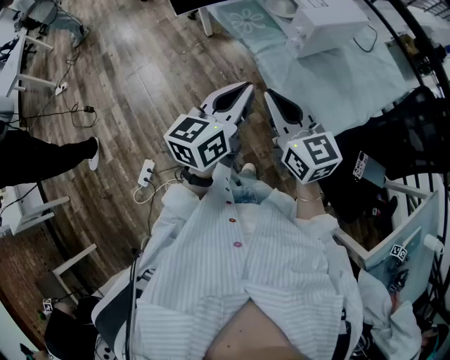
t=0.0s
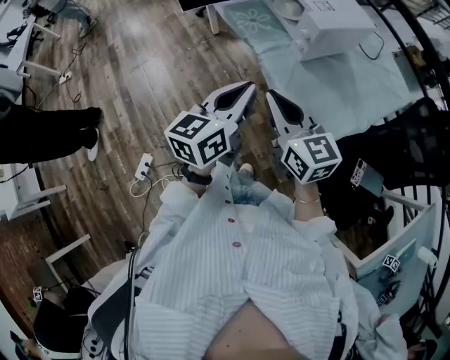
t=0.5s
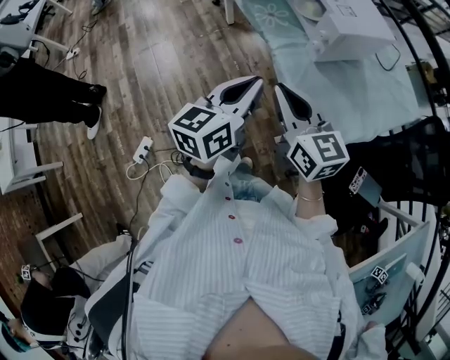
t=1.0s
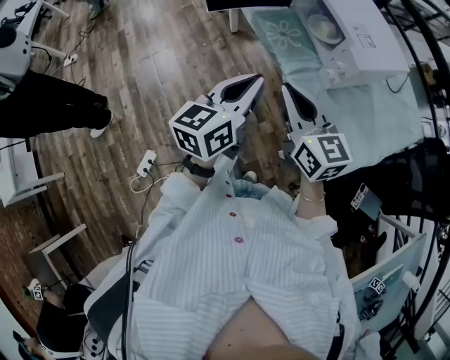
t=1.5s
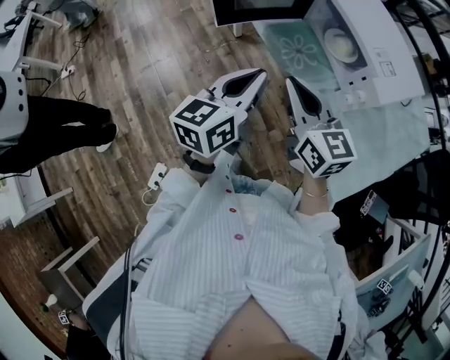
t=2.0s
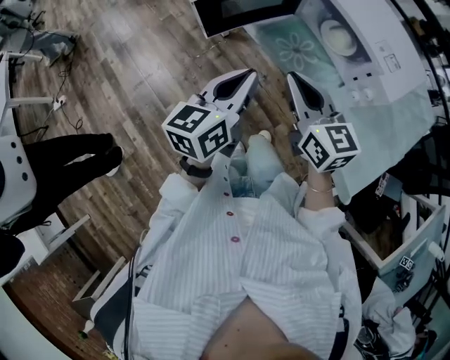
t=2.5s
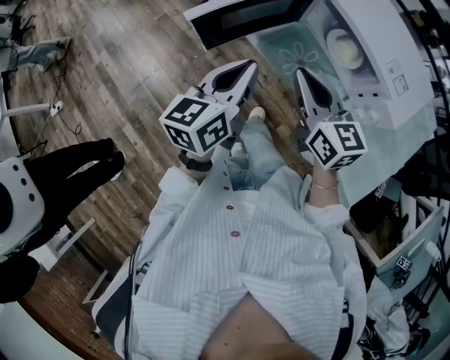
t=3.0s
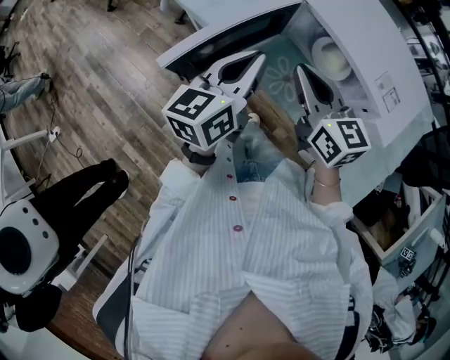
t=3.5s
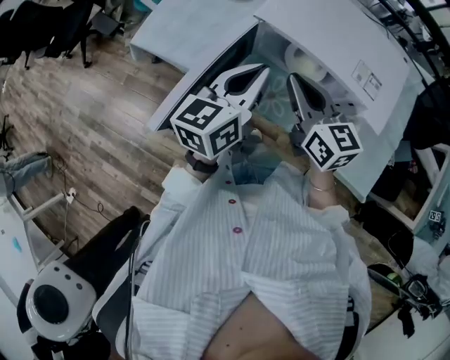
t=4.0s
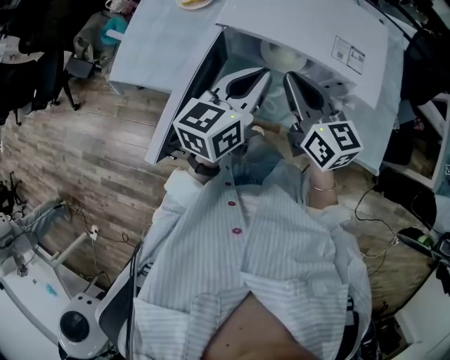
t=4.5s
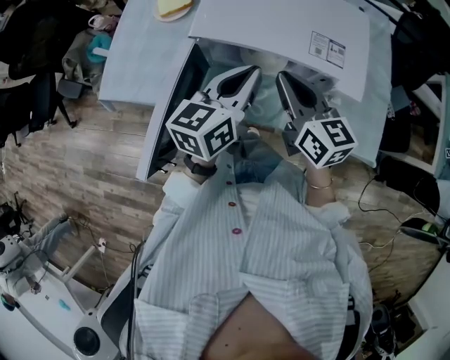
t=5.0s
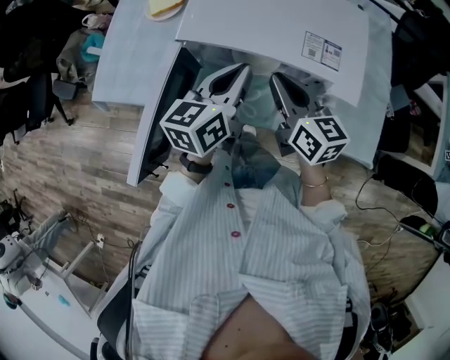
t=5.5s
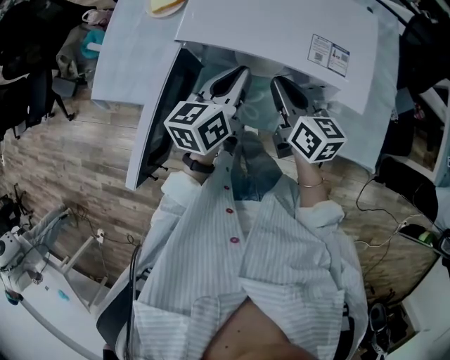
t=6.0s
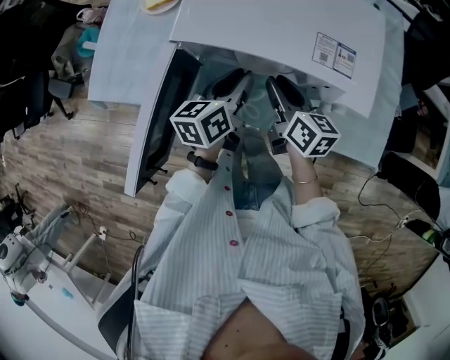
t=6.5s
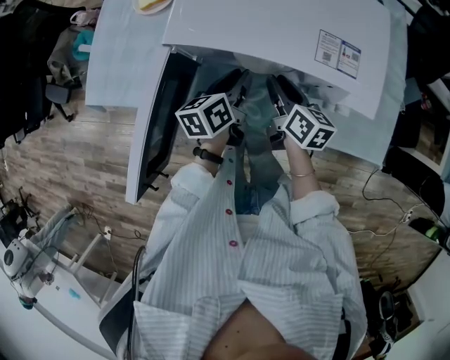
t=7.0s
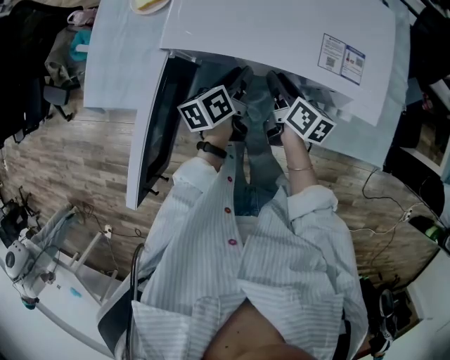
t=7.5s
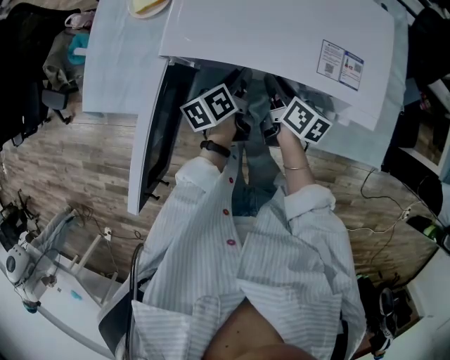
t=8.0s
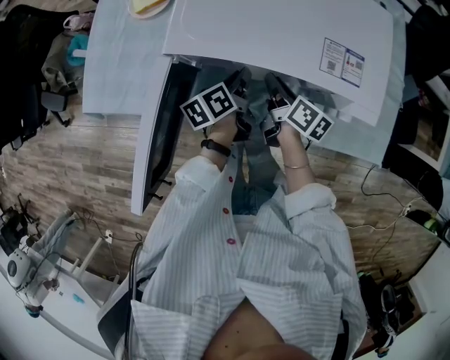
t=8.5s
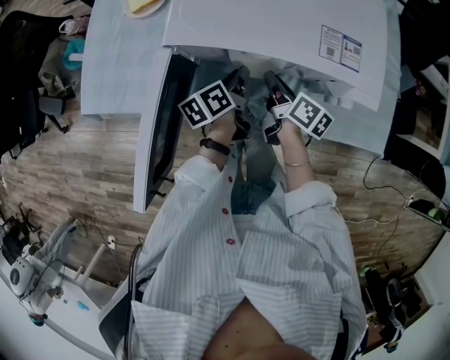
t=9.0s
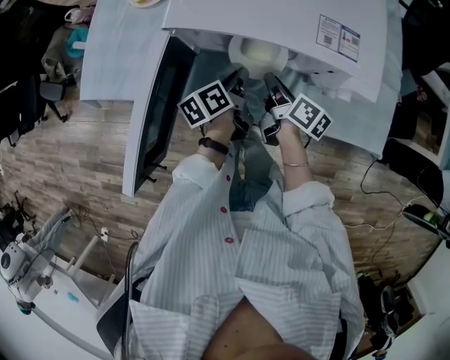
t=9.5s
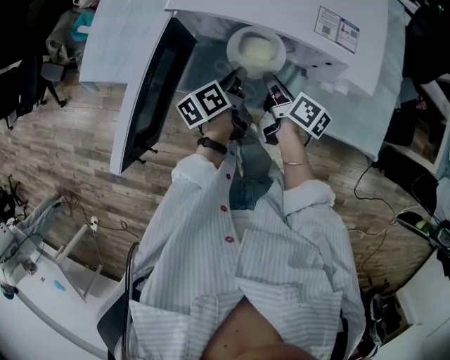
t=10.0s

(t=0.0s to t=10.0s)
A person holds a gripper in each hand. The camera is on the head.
t=0.0s - t=2.0s: Both grippers move forward and to the left, about 25 cm.
t=2.0s - t=4.0s: The right gripper moves approximately 25 cm, and turns by roughly 30 degrees, while the left gripper ends up about 30 cm from where it was, and swivels about 30 degrees.
t=4.0s - t=6.0s: The left gripper moves downward, to the right and forward, approximately 15 cm. Meanwhile the right gripper moves to the right, downward and forward, approximately 15 cm, and changes its angle by roughly 30 degrees.
t=6.0s - t=8.0s: Both grippers travel together downward, about 15 cm. The left gripper rotates roughly 30 degrees, and opens up, while the right gripper changes its angle by approximately 30 degrees.
t=8.0s - t=10.0s: The grippers both shift backward by approximately 10 cm.

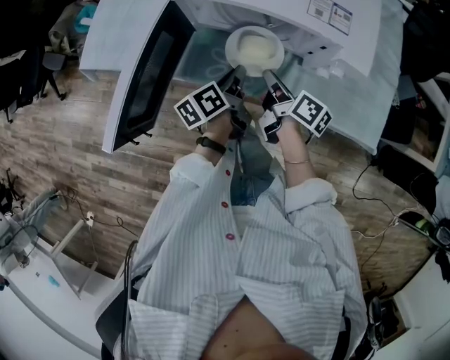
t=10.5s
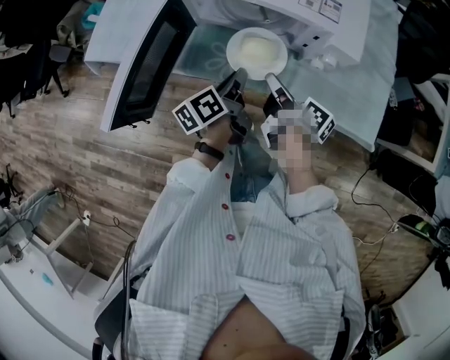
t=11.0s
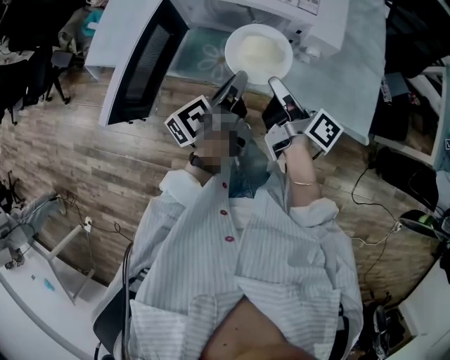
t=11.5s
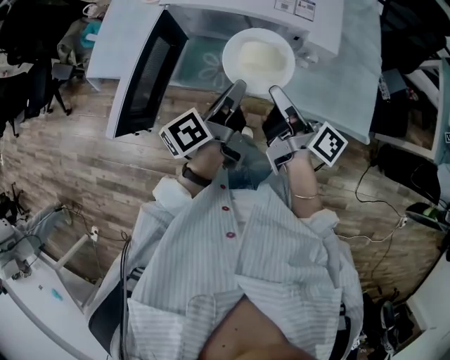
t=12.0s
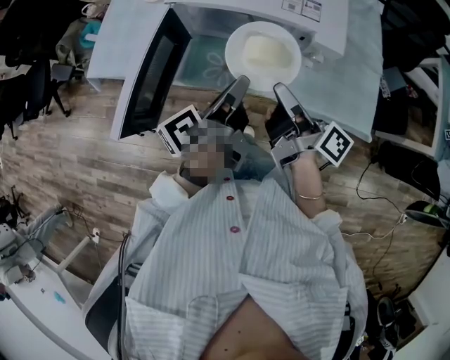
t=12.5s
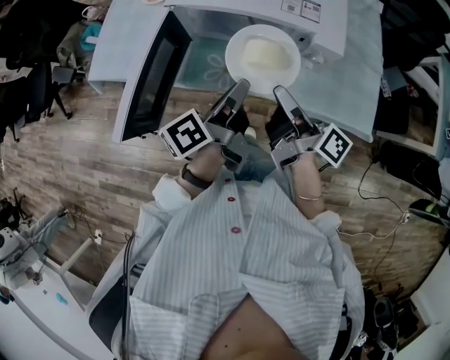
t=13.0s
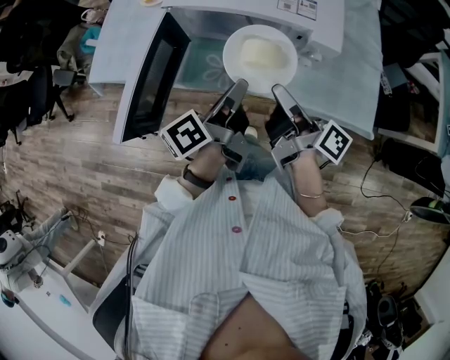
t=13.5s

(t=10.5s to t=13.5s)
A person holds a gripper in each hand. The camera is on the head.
t=10.5s - t=12.0s: The grippers both shift upward and backward by some 15 cm. The right gripper changes its angle by approximately 20 degrees.
t=12.0s - t=13.5s: The grippers stay close to where they were, moving slightly.

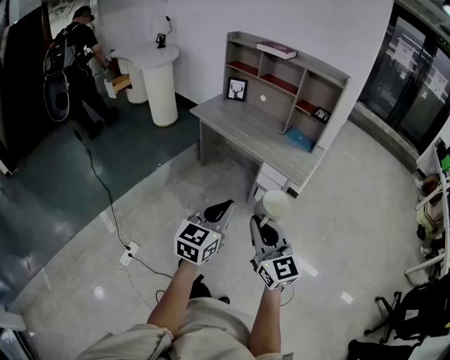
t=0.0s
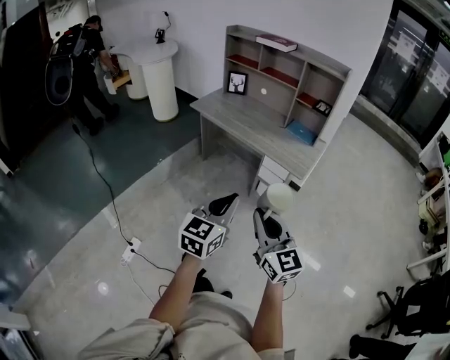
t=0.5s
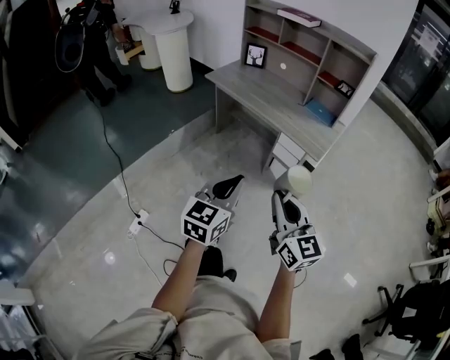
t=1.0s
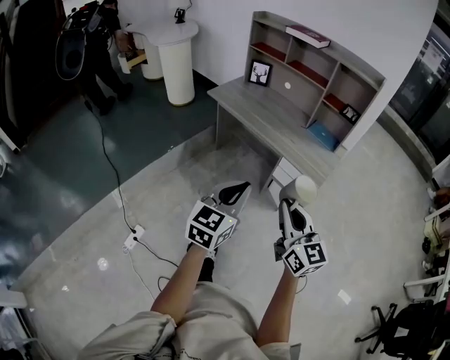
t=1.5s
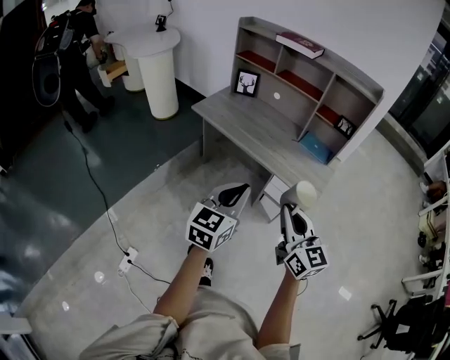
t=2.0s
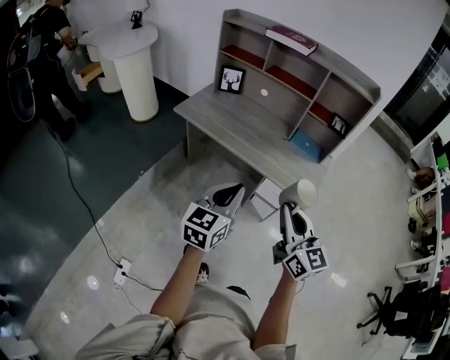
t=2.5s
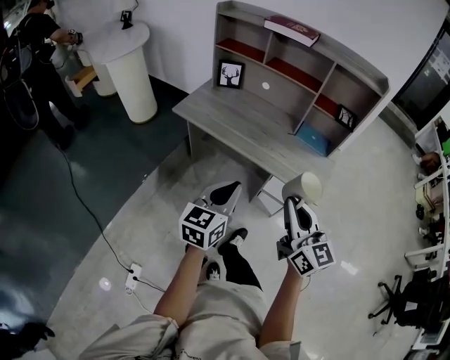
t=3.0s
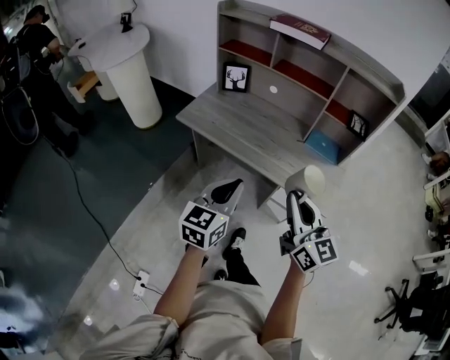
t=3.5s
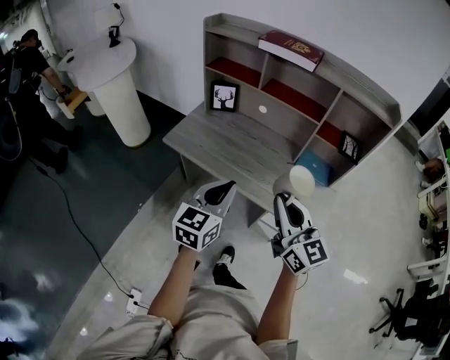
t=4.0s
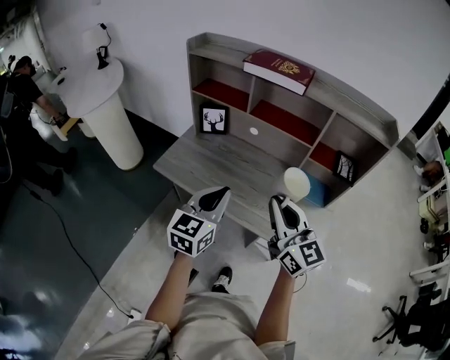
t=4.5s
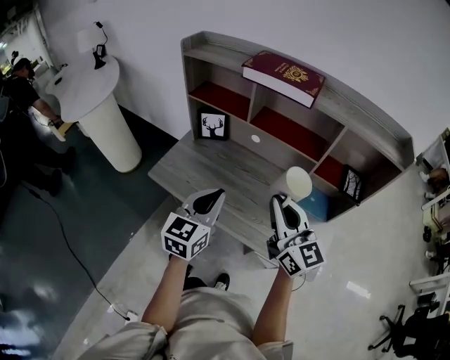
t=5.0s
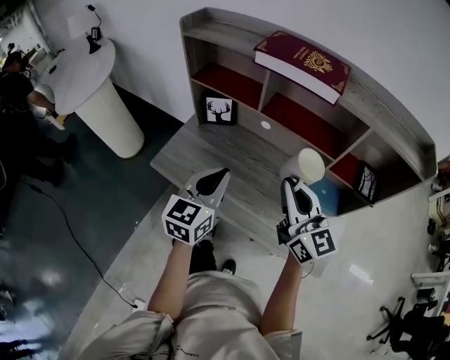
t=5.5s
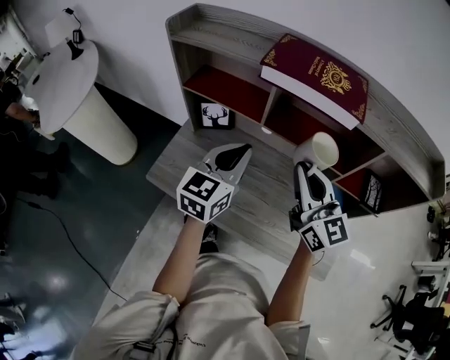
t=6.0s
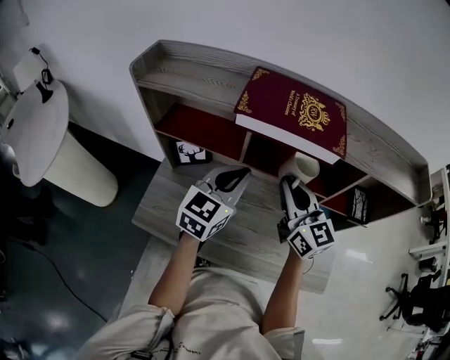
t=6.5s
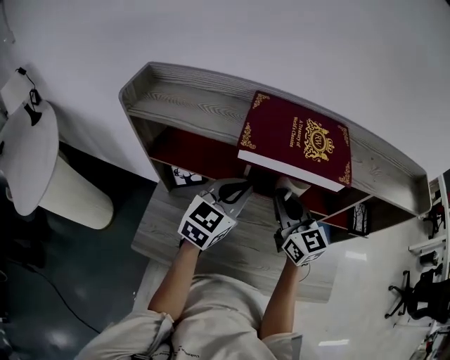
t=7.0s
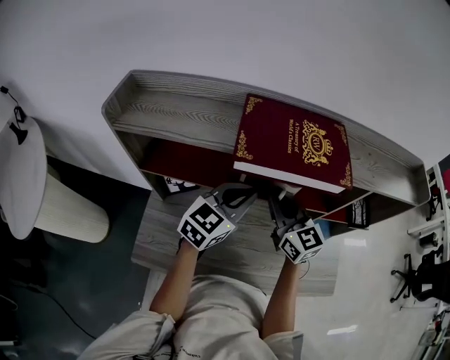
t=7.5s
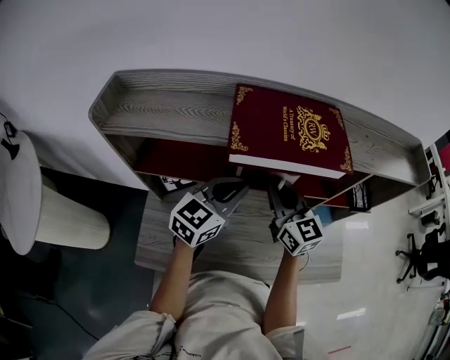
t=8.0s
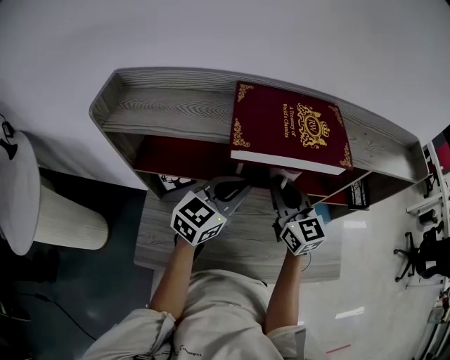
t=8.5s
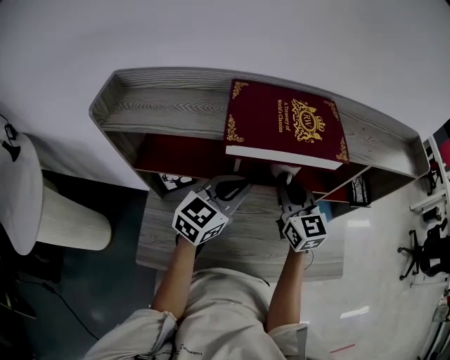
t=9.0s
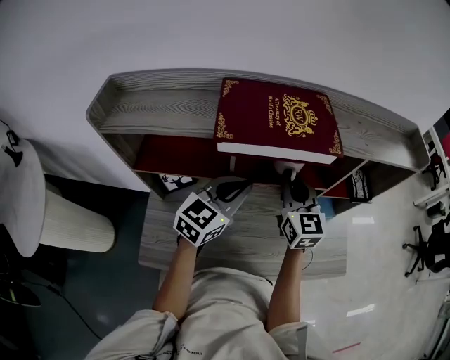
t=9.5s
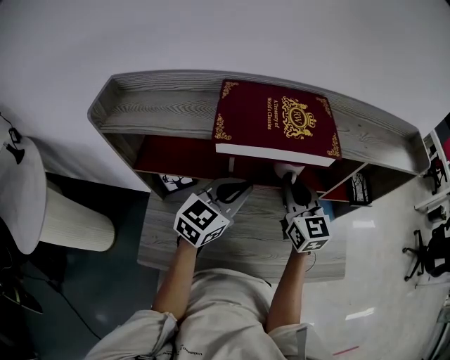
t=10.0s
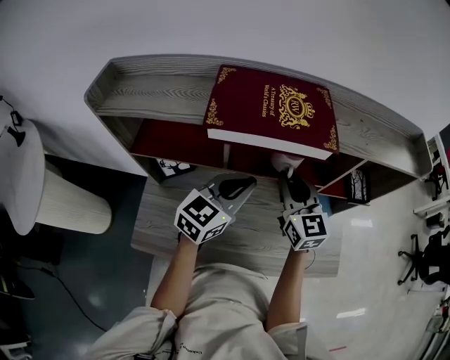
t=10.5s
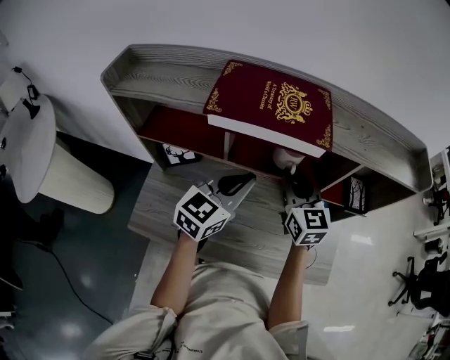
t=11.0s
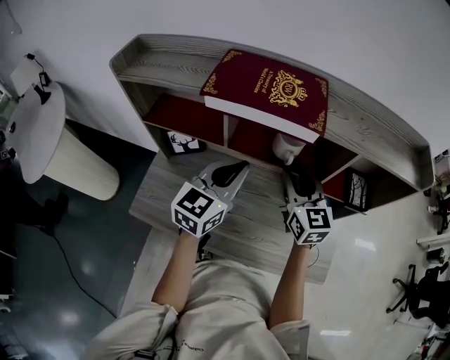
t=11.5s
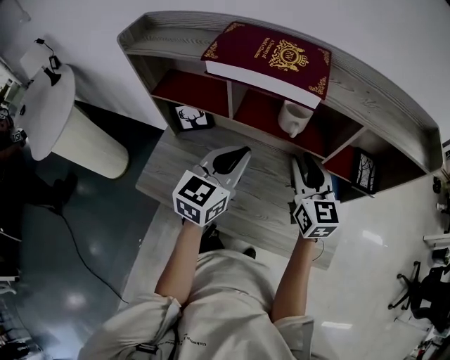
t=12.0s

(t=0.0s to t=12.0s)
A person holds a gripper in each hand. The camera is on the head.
t=0.0s - t=2.0s: The grippers both shift forward by roughly 20 cm.
t=2.0s - t=4.0s: The two grippers go some 30 cm forward.
t=4.0s - t=6.0s: Both grippers travel together forward, about 35 cm.
t=6.0s - t=8.0s: The right gripper moves some 15 cm, and swivels roughly 20 degrees; the left gripper changes place by about 10 cm, and rotates some 40 degrees.
t=8.0s - t=10.0s: The right gripper moves to the right, roughly 5 cm.
t=10.0s - t=12.0s: The left gripper heads backward, covering some 5 cm, and turns by approximately 30 degrees. The right gripper shifts some 10 cm to the right and backward, and opens up.

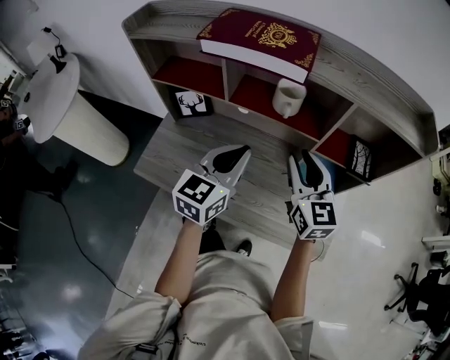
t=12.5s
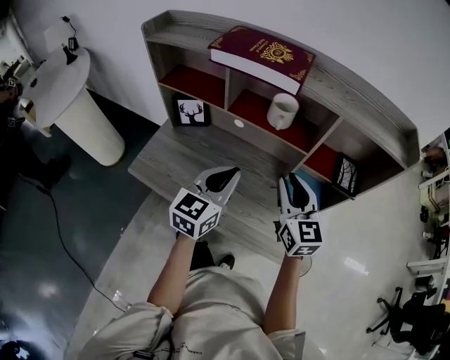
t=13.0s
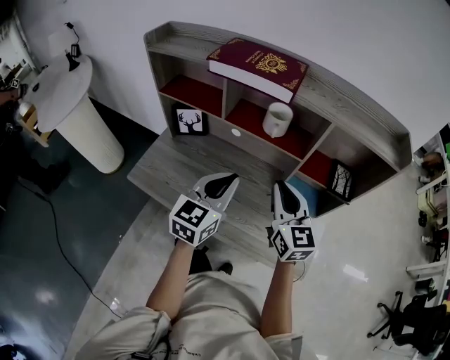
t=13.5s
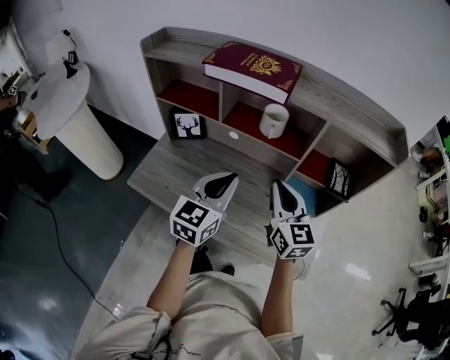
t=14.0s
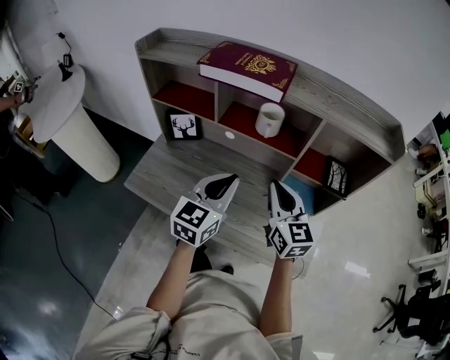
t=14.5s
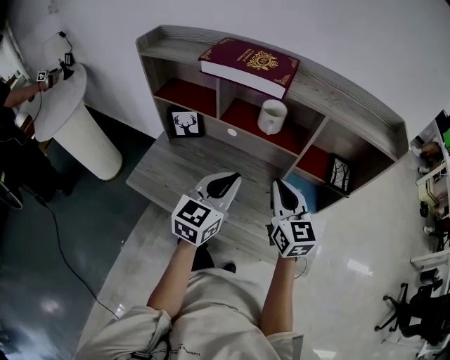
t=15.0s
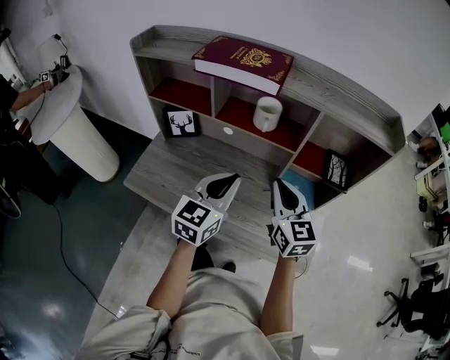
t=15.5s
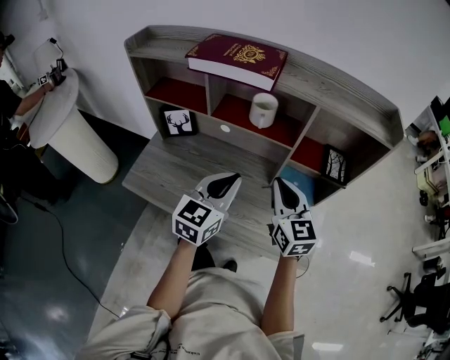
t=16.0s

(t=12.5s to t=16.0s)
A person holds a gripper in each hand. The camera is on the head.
t=12.5s - t=14.5s: Both grippers move backward, approximately 5 cm. The right gripper closes.
t=14.5s - t=16.0s: The grippers move only a little.
